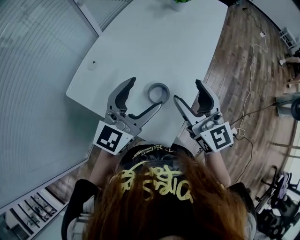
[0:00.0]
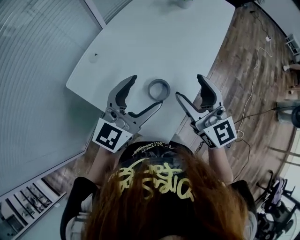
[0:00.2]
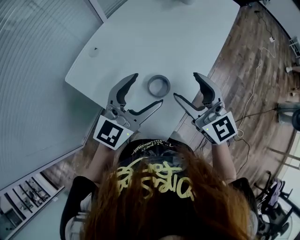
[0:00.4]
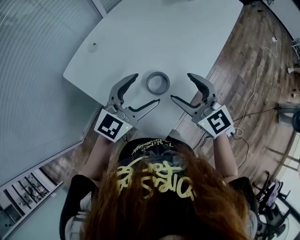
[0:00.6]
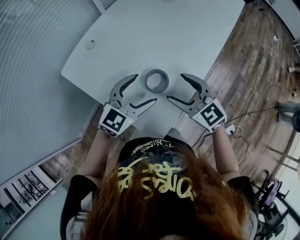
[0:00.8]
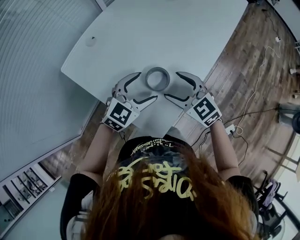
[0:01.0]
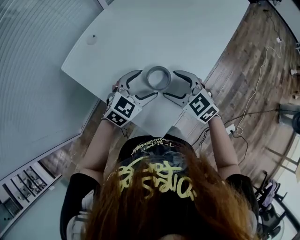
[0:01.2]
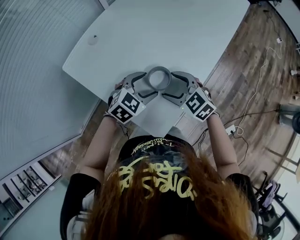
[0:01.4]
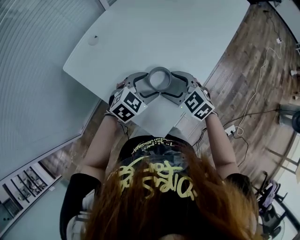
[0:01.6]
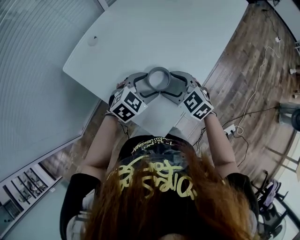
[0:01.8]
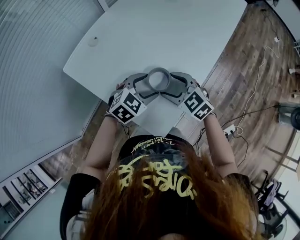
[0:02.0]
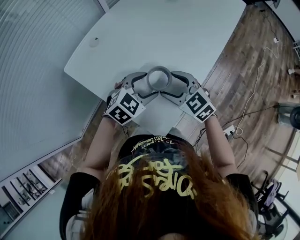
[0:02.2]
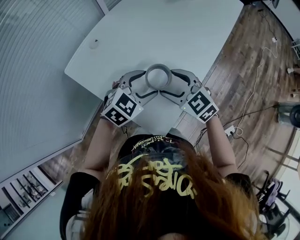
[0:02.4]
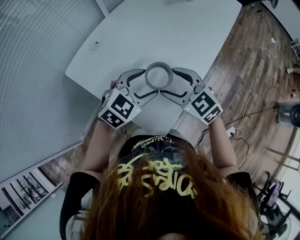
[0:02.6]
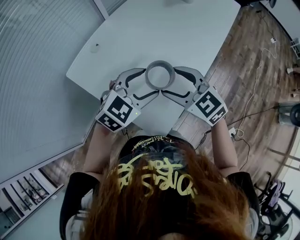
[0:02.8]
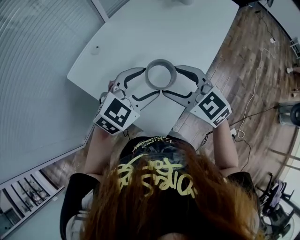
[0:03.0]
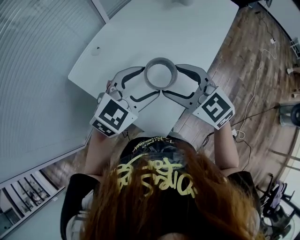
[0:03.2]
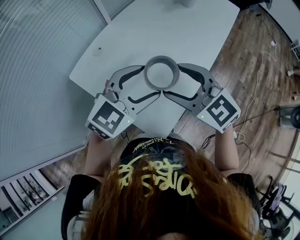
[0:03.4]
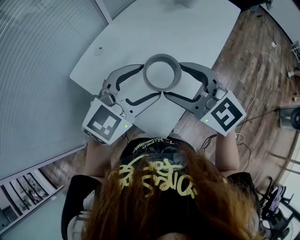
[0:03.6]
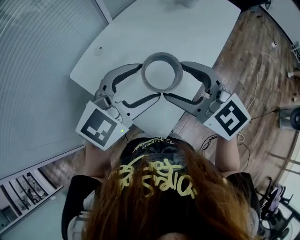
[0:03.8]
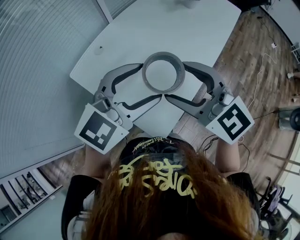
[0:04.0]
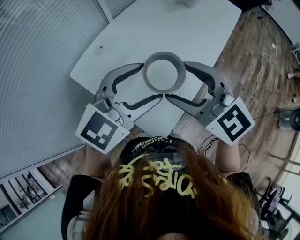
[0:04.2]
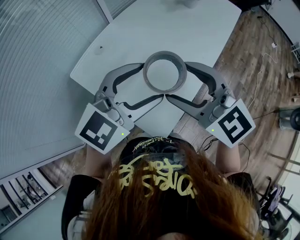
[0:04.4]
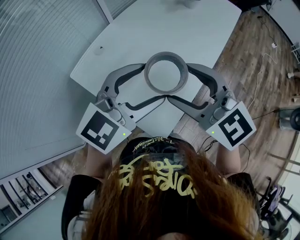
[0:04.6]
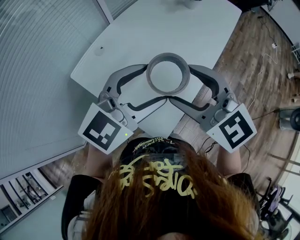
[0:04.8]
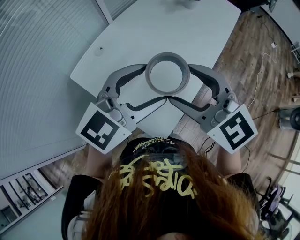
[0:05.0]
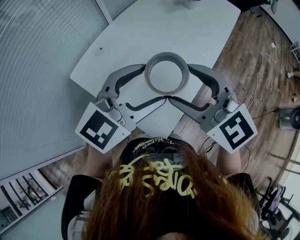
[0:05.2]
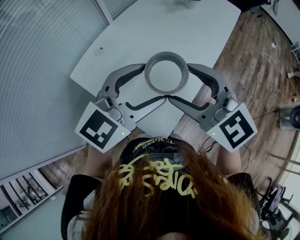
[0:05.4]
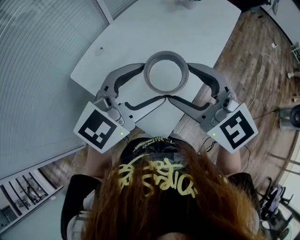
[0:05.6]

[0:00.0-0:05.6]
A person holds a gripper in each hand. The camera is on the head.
0:00.0 to 0:01.4: The two grippers go some 20 cm downward. The left gripper tips its fingers downward by roughly 40 degrees. The right gripper points its fingers roughly 40 degrees further downward.
0:01.4 to 0:02.8: The two grippers go roughly 10 cm upward.
0:02.8 to 0:04.2: The grippers both shift upward by roughly 15 cm.
0:04.2 to 0:05.6: The grippers stay close to where they were, moving slightly.

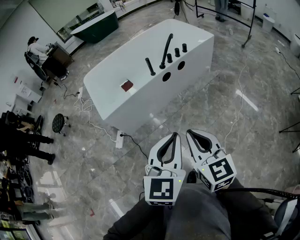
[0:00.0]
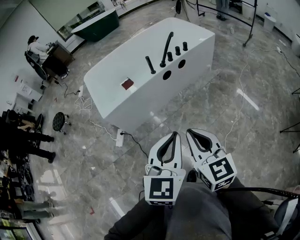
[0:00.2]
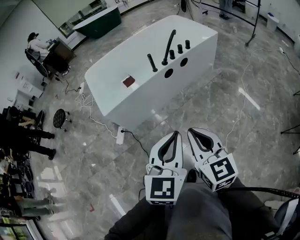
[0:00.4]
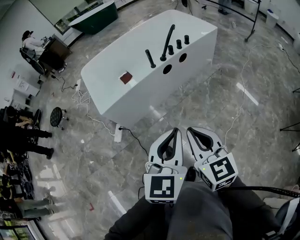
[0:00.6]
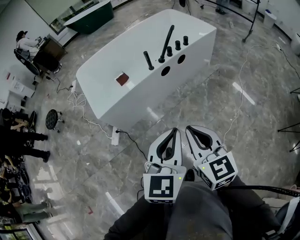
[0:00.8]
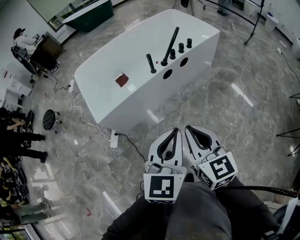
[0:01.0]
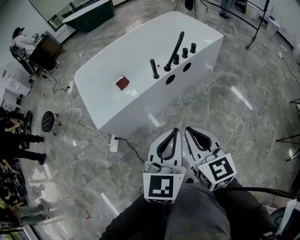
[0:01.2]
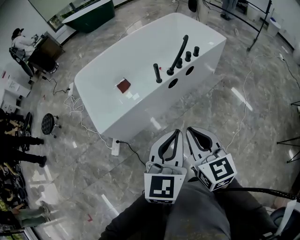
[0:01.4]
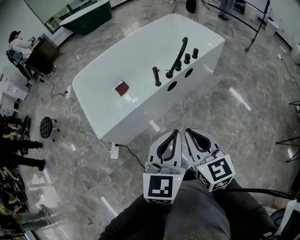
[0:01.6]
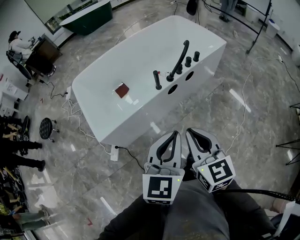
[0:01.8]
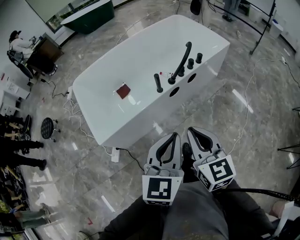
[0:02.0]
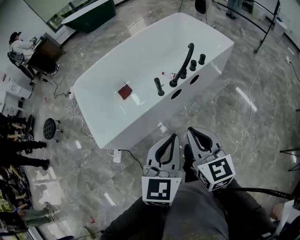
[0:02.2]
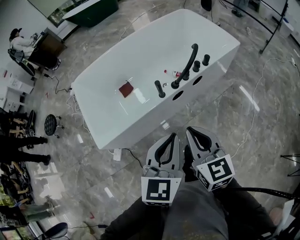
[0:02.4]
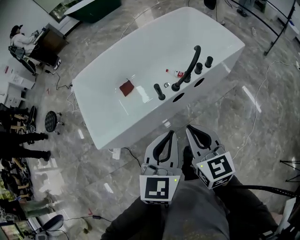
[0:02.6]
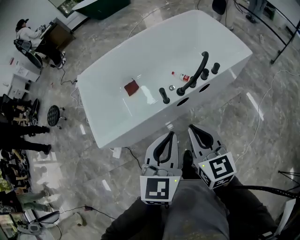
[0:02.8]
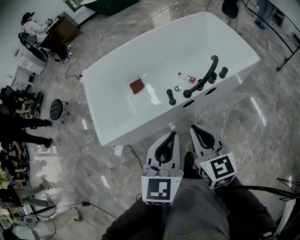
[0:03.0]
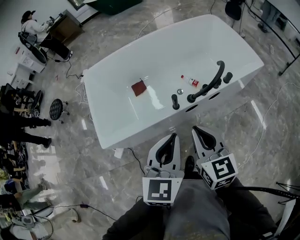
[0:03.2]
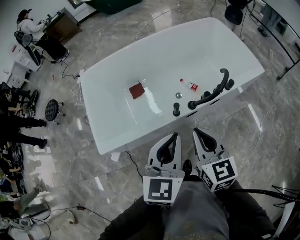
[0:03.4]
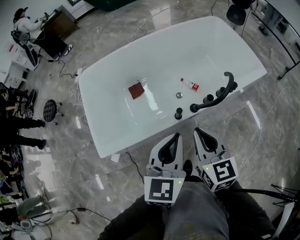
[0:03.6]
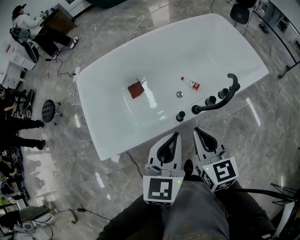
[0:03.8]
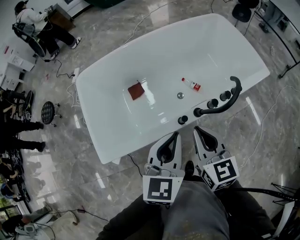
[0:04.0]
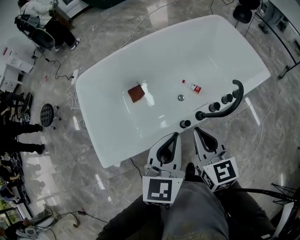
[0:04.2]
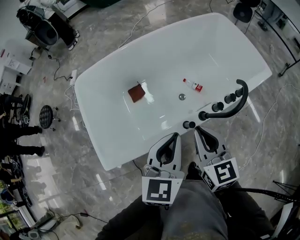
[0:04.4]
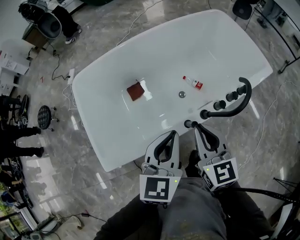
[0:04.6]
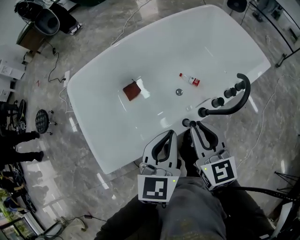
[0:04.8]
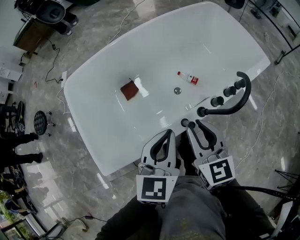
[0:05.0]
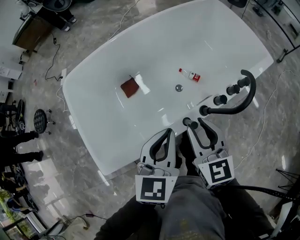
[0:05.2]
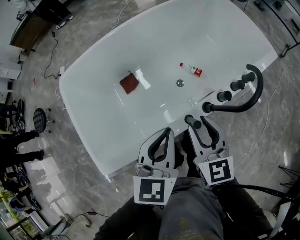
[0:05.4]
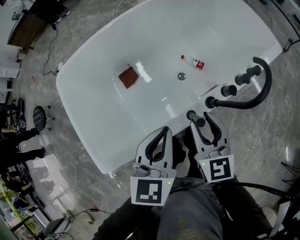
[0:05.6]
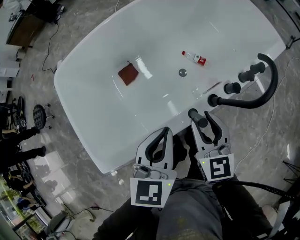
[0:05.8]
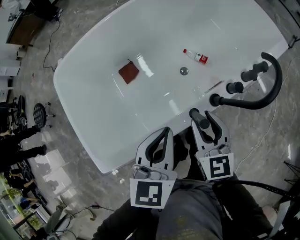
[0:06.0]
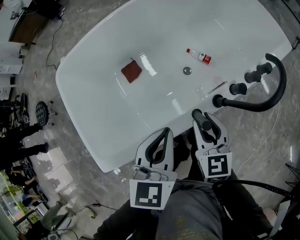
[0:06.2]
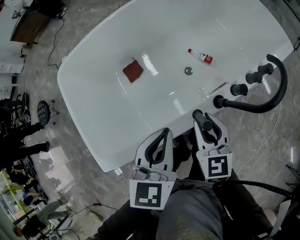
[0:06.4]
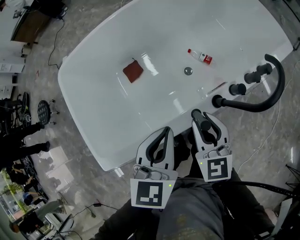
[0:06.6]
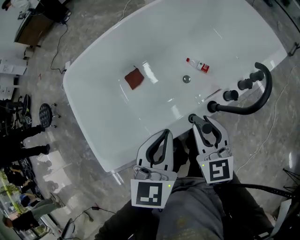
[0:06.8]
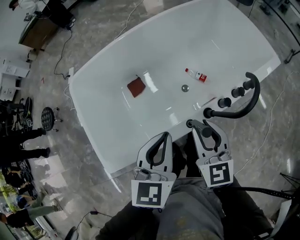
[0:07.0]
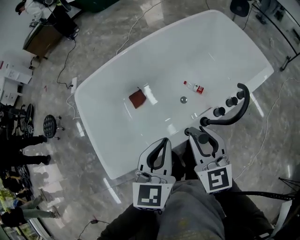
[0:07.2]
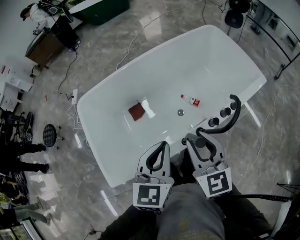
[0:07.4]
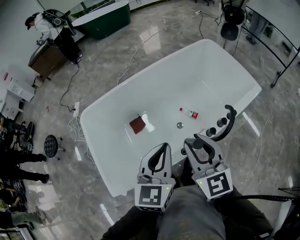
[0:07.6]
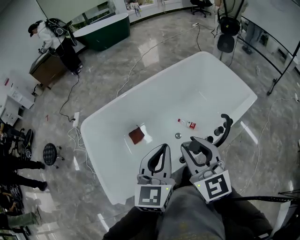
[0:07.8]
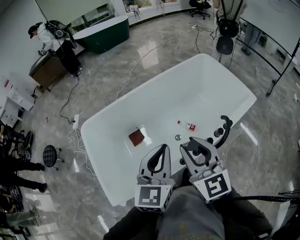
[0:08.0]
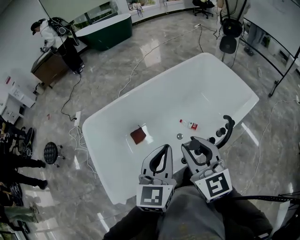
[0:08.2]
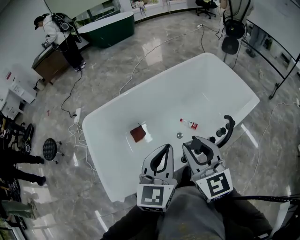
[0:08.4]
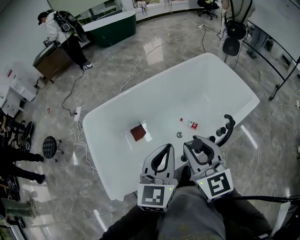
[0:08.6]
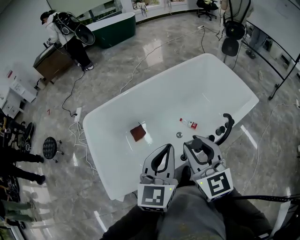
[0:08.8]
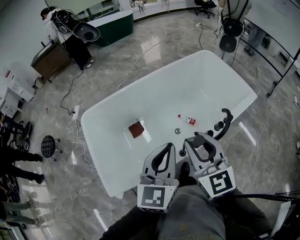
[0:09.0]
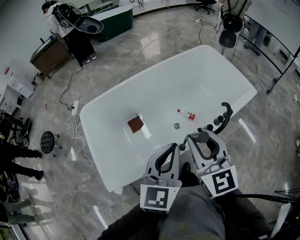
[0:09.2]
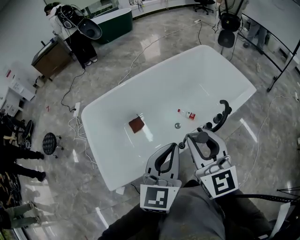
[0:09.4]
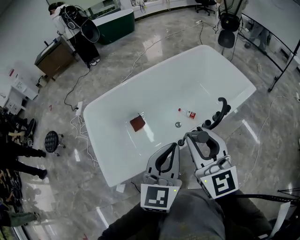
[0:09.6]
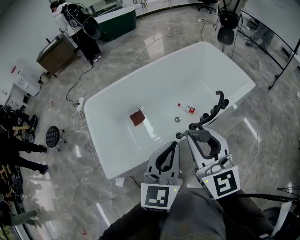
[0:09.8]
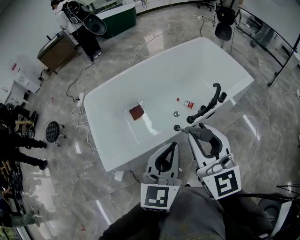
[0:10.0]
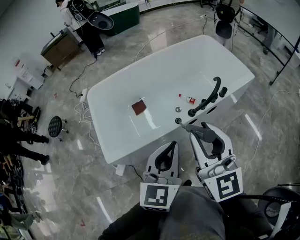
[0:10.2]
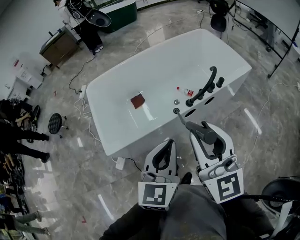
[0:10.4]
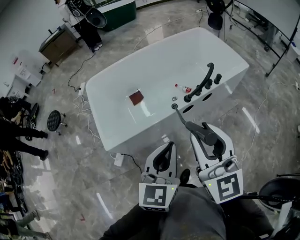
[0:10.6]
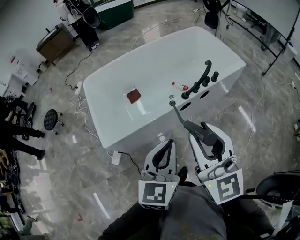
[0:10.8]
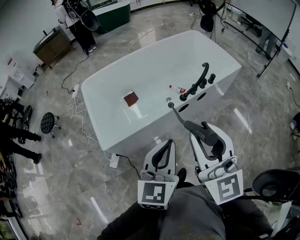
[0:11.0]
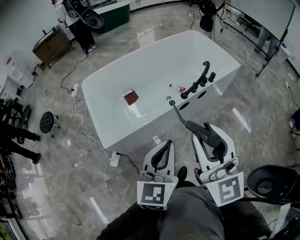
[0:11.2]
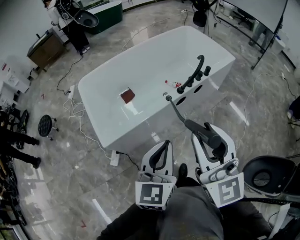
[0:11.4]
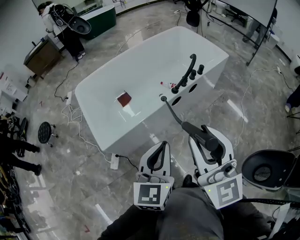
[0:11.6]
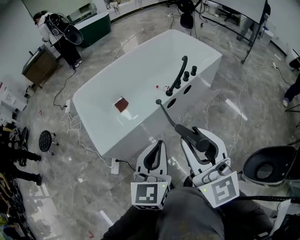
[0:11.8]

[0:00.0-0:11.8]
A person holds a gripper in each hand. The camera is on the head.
0:00.0 to 0:01.4: Both grippers travel together forward, roughly 20 cm.
0:01.4 to 0:03.0: Both grippers move forward, about 25 cm.
0:03.0 to 0:04.4: Both grippers move forward and to the left, roughly 20 cm.
0:04.4 to 0:06.0: The grippers both shift downward by some 15 cm. The right gripper opens.
0:06.0 to 0:07.4: Both grippers travel together upward, roughly 20 cm.
0:07.4 to 0:08.8: The grippers both shift upward by roughly 5 cm.
0:08.8 to 0:10.4: The grippers both shift backward by some 25 cm.
0:10.4 to 0:11.8: Both grippers travel together backward, roughly 15 cm.

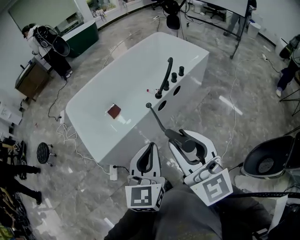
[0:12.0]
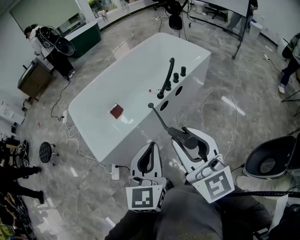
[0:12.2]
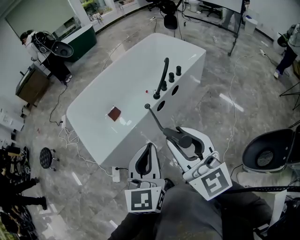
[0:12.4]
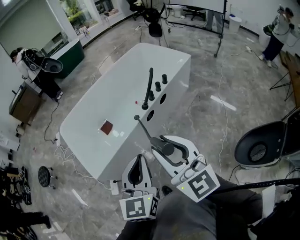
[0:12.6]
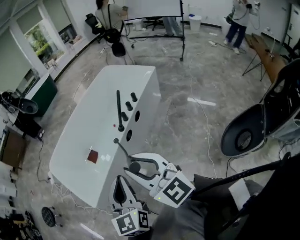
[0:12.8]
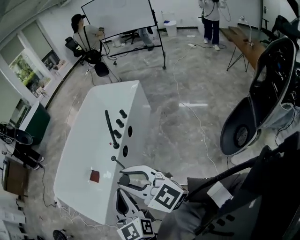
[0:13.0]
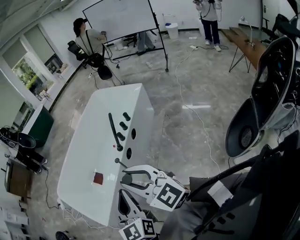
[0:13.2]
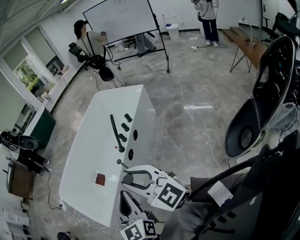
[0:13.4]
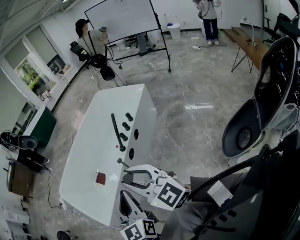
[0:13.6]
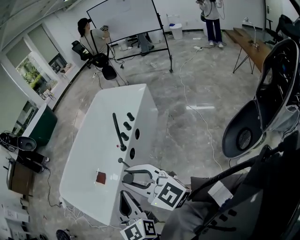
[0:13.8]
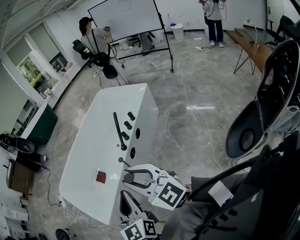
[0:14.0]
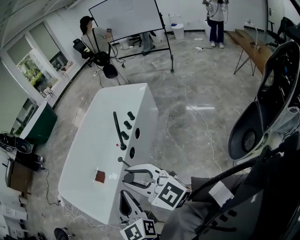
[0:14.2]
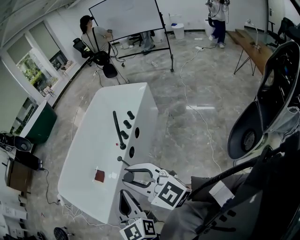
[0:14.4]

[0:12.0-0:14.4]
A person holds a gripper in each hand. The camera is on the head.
0:12.0 to 0:13.2: The grippers stay close to where they were, moving slightly.
0:13.2 to 0:14.4: Neither gripper changes place.

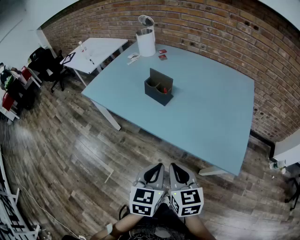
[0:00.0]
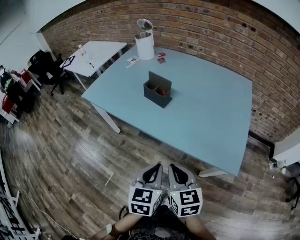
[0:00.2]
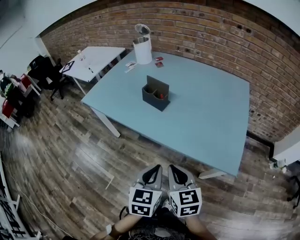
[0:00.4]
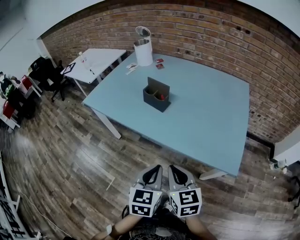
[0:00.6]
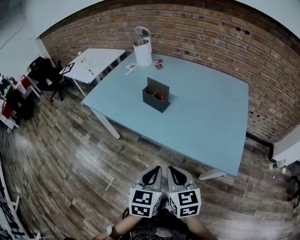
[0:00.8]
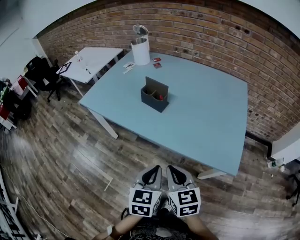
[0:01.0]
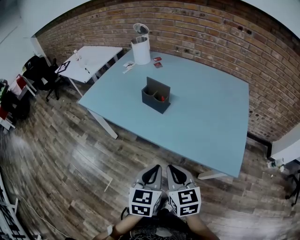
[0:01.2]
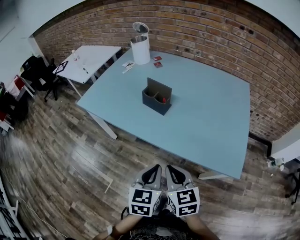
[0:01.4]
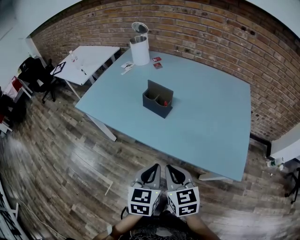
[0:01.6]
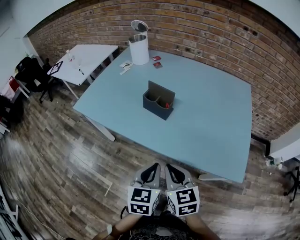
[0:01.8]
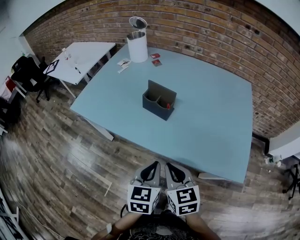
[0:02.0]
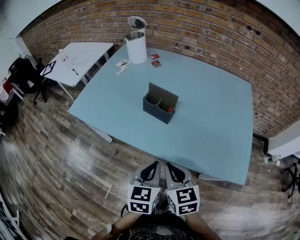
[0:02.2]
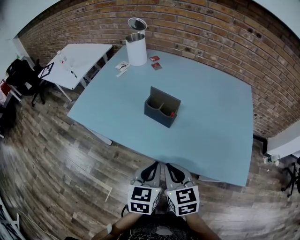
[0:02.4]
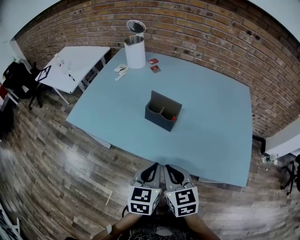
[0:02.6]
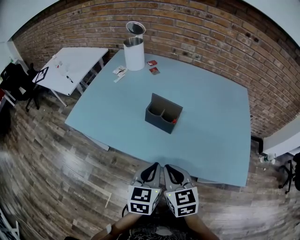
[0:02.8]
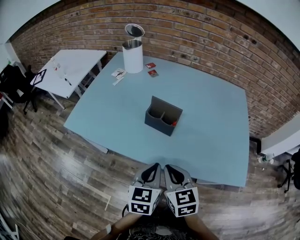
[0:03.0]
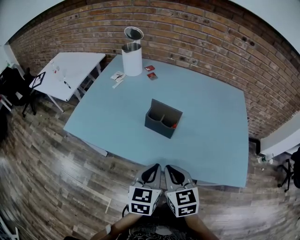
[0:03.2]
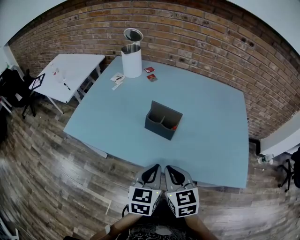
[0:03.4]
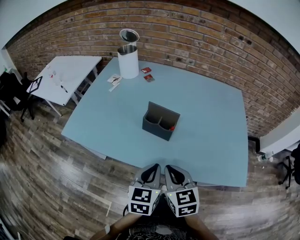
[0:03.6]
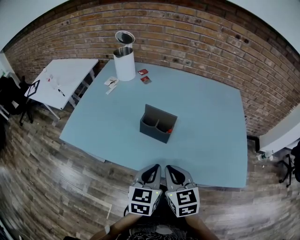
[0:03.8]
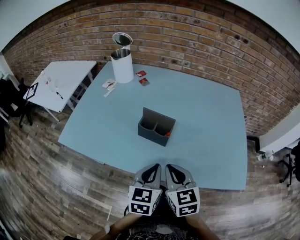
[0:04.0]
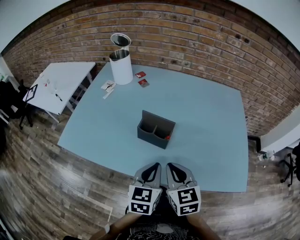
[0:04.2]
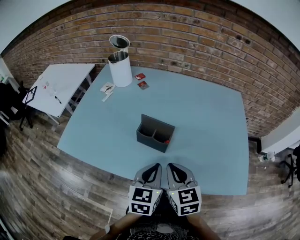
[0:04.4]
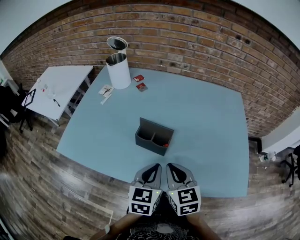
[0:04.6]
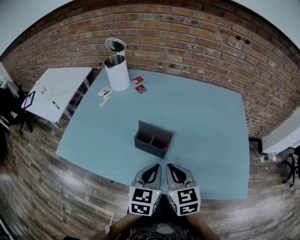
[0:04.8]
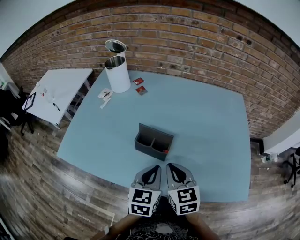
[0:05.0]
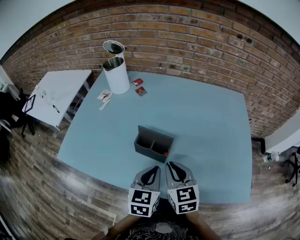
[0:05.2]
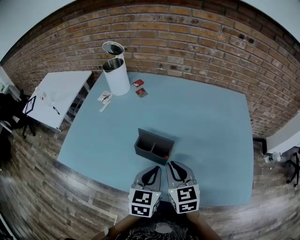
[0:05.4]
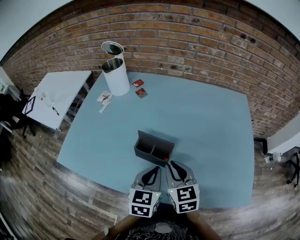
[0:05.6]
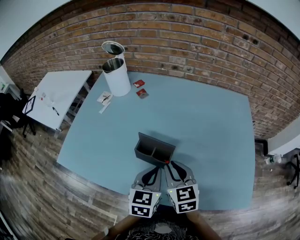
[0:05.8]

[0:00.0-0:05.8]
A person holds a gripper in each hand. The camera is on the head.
0:00.0 to 0:01.4: The grippers stay close to where they were, moving slightly.
0:01.4 to 0:02.8: Both grippers move forward and to the left, about 15 cm.
0:02.8 to 0:04.4: The grippers both shift forward by about 10 cm.
0:04.4 to 0:05.8: The two grippers go roughly 10 cm forward.
